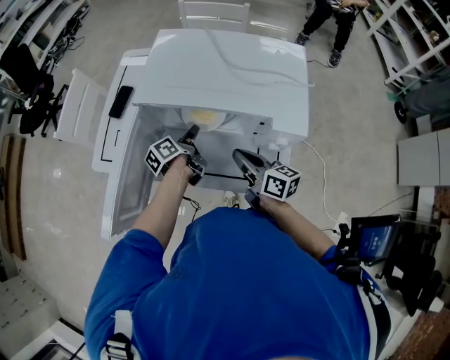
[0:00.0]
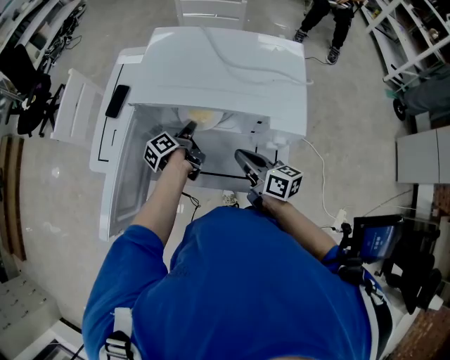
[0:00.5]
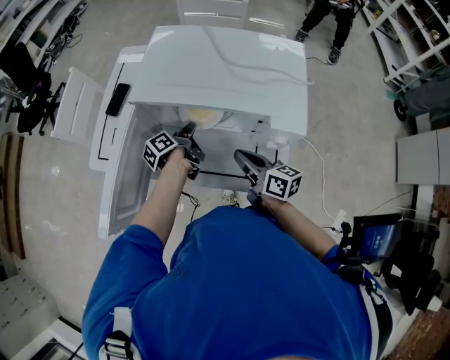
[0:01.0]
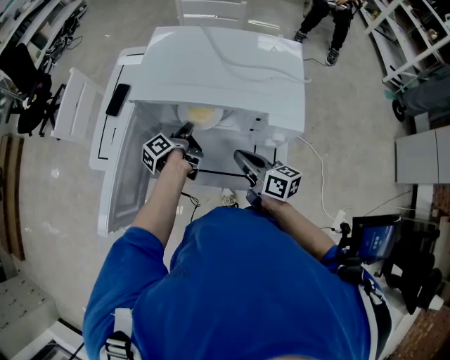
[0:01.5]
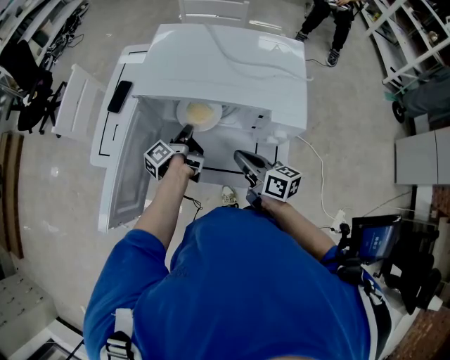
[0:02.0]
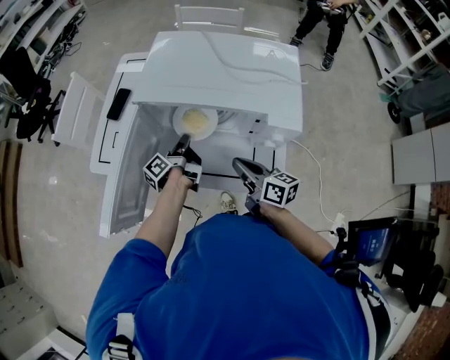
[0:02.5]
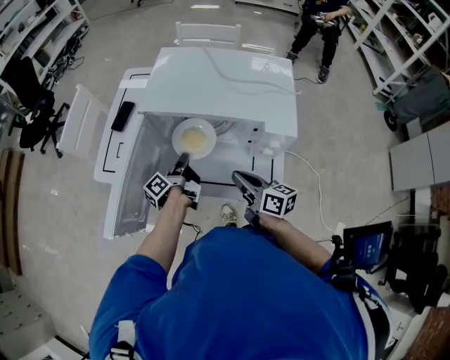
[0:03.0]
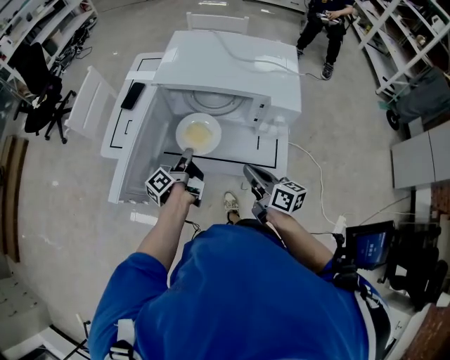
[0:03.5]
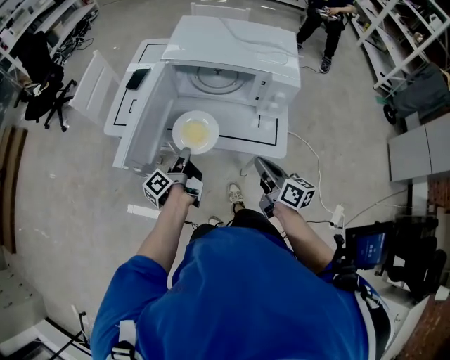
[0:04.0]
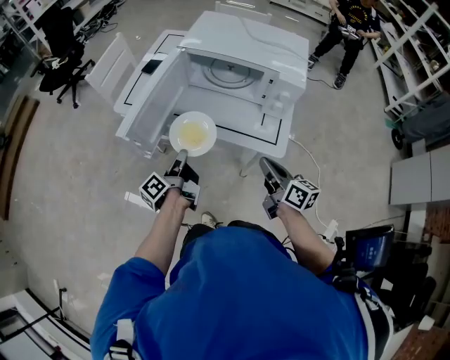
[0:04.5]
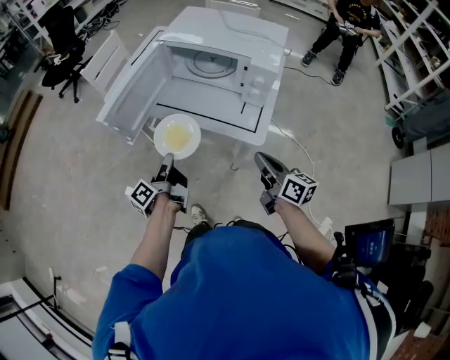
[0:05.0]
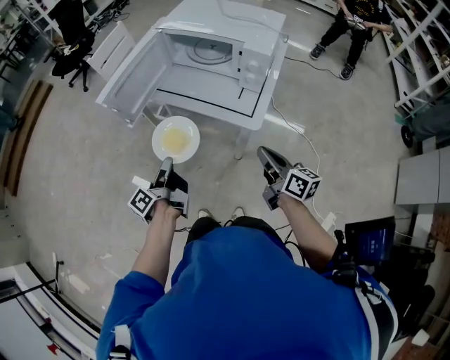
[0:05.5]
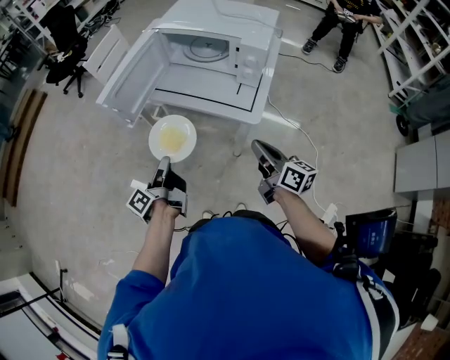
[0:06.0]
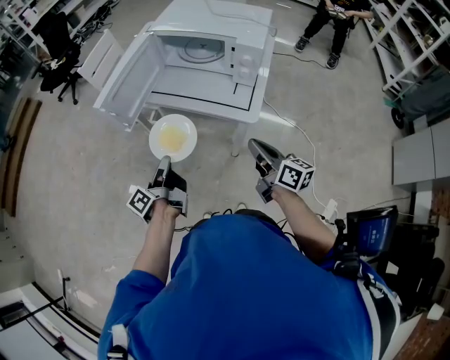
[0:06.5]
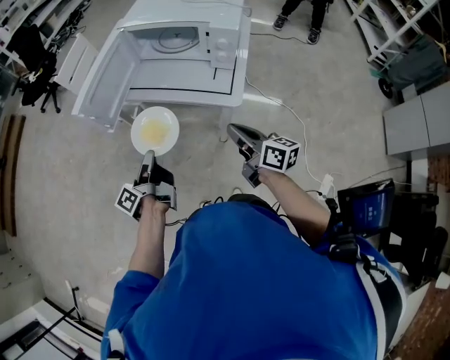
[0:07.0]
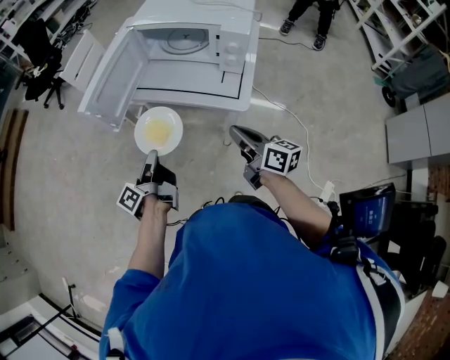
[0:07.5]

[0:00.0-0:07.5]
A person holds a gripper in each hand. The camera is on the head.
0:00.0 to 0:02.0: The left gripper closes its fingers.
0:02.0 to 0:04.0: The right gripper travels backward by approximately 15 cm, while the left gripper heads backward and to the left, covering roughly 20 cm.
0:04.0 to 0:05.5: The right gripper heads backward and to the right, covering approximately 15 cm; the left gripper travels backward by approximately 20 cm.
0:05.5 to 0:07.5: The right gripper is displaced to the left by about 5 cm.

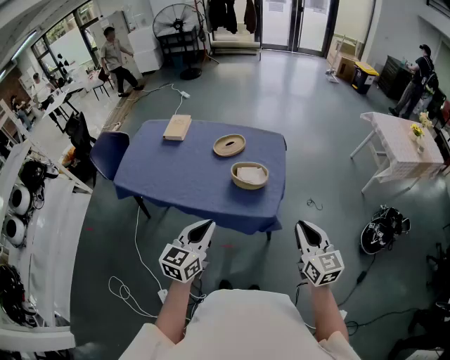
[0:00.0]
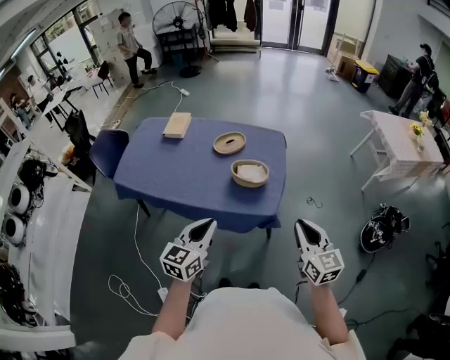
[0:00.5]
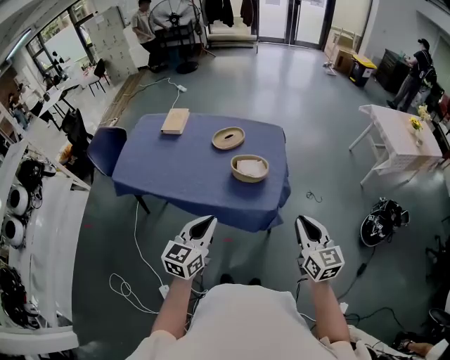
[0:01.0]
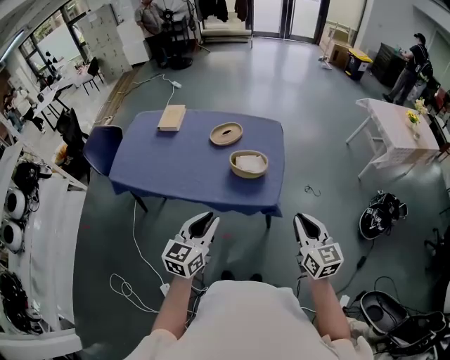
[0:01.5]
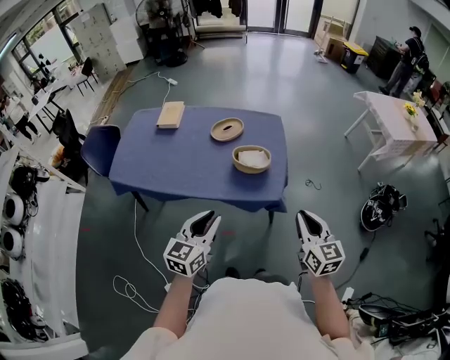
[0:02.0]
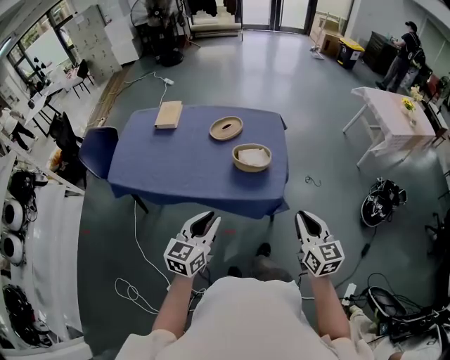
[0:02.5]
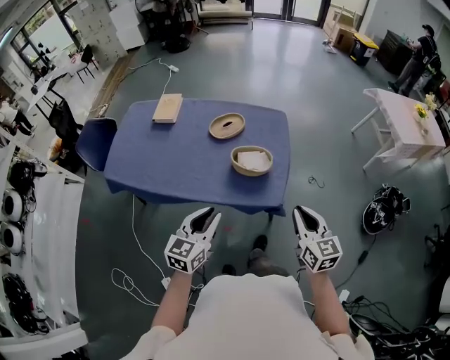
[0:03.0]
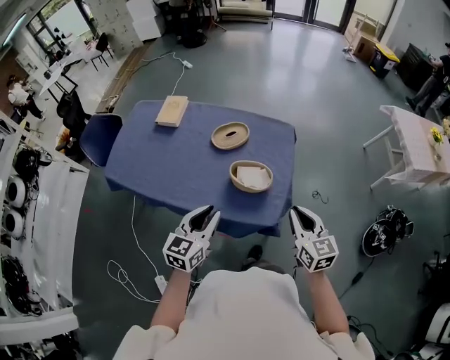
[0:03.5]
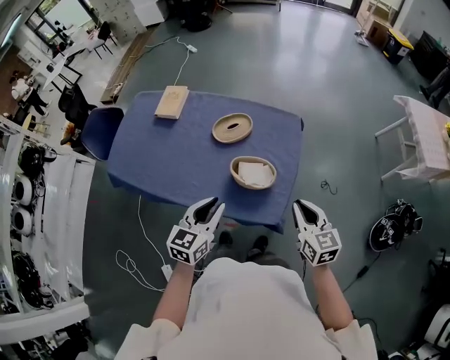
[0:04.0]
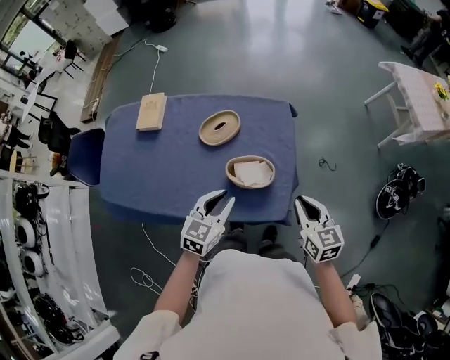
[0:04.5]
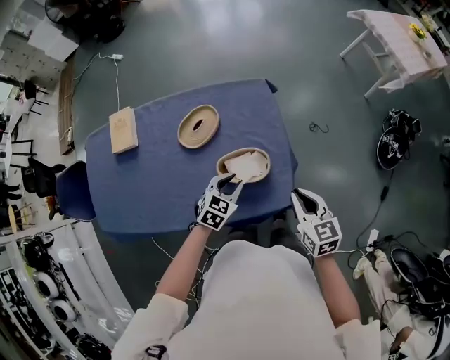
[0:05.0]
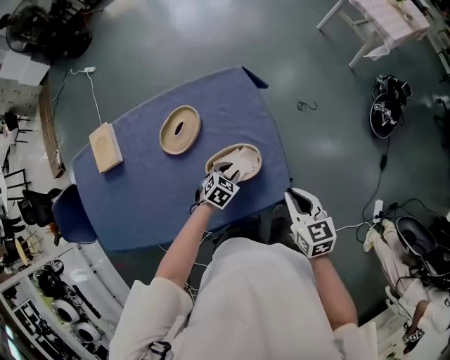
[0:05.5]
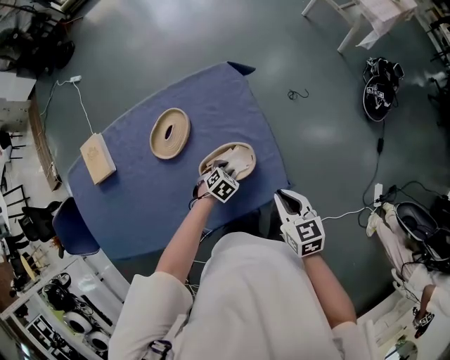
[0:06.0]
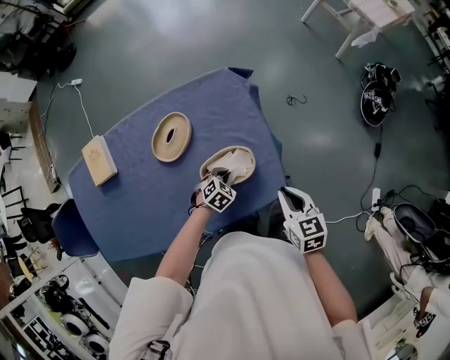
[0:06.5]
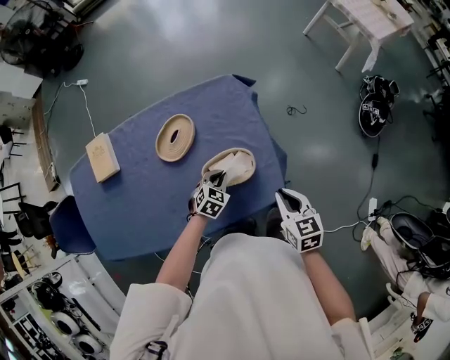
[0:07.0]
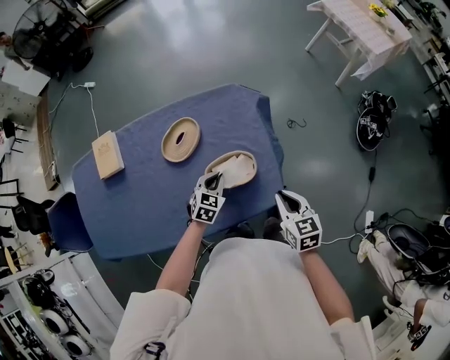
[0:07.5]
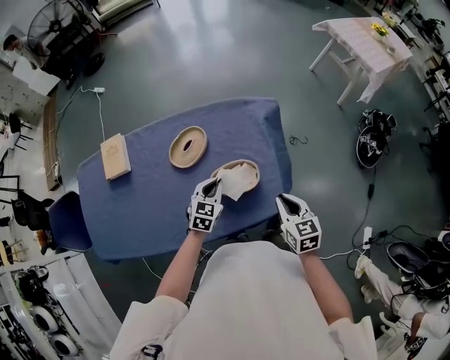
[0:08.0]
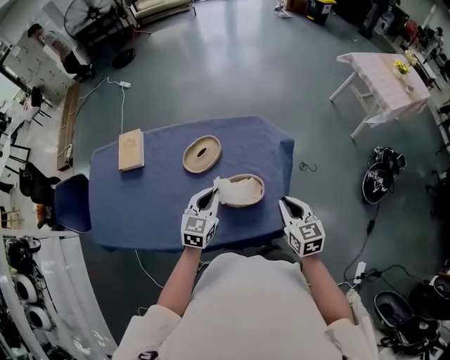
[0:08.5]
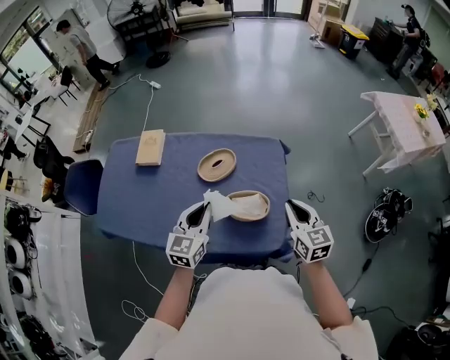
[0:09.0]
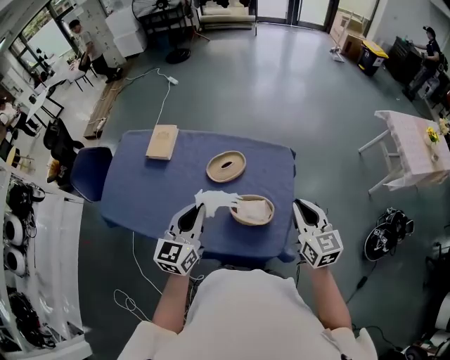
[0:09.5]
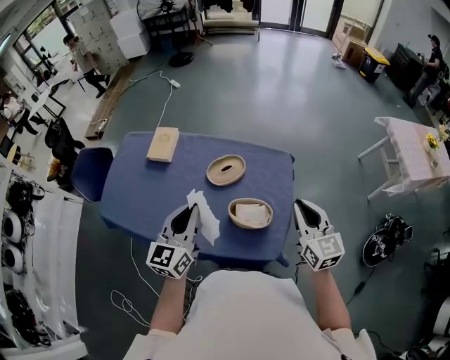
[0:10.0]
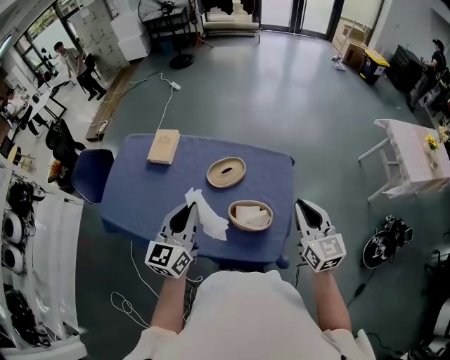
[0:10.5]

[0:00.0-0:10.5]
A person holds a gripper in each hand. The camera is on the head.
0:00.0 to 0:02.0: The grippers both shift to the left by some 5 cm.
0:02.0 to 0:04.0: The two grippers go approximately 25 cm forward.
0:04.0 to 0:06.5: The right gripper shifts about 15 cm downward, and changes its angle by roughly 40 degrees. Meanwhile the left gripper shifts some 35 cm downward, and points its fingers some 40 degrees further downward.
0:06.5 to 0:08.5: The right gripper goes approximately 10 cm upward, while the left gripper travels upward by about 25 cm, and points its fingers about 40 degrees further upward.
0:08.5 to 0:10.5: The left gripper shifts roughly 20 cm upward and to the left, and rotates approximately 30 degrees. The right gripper moves upward, approximately 15 cm, and turns by about 30 degrees.

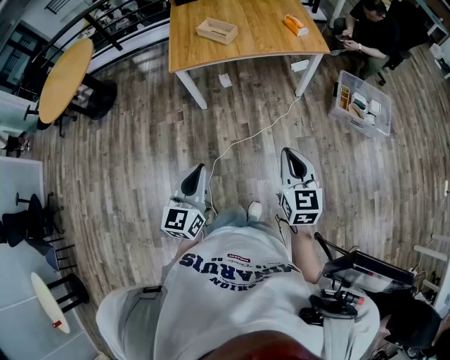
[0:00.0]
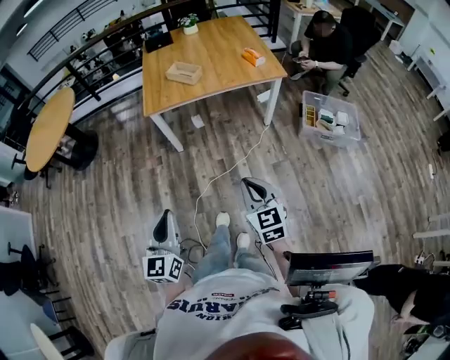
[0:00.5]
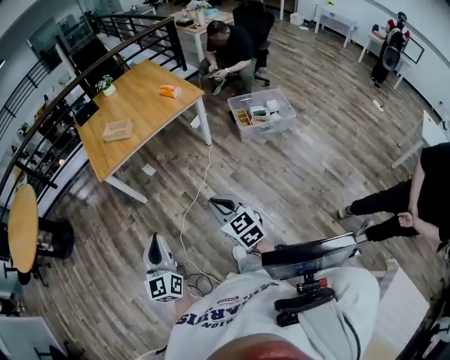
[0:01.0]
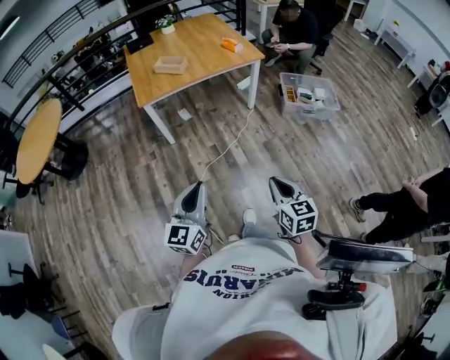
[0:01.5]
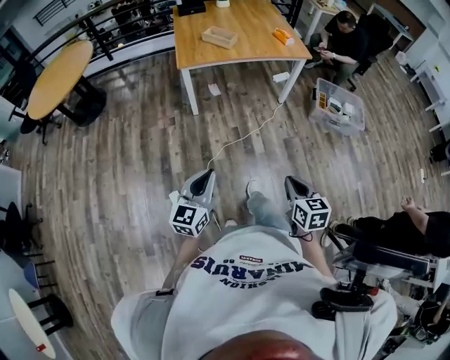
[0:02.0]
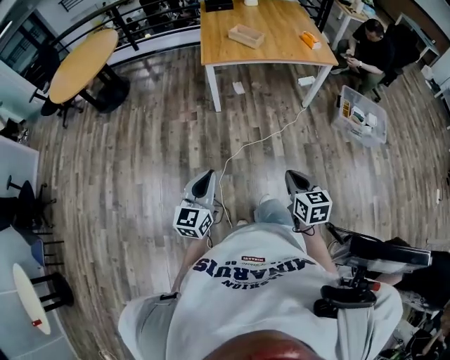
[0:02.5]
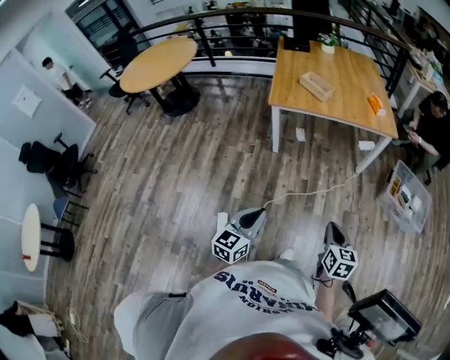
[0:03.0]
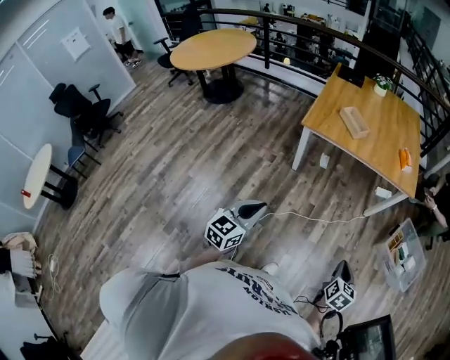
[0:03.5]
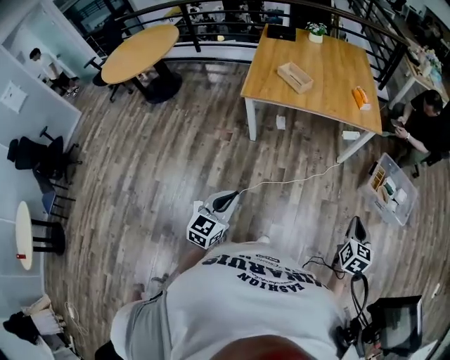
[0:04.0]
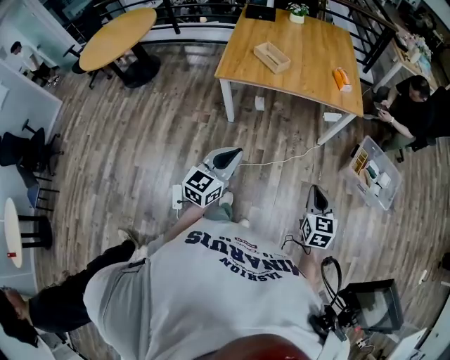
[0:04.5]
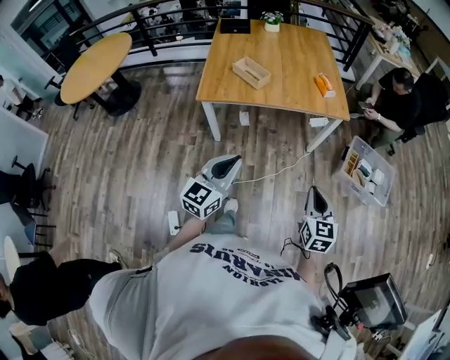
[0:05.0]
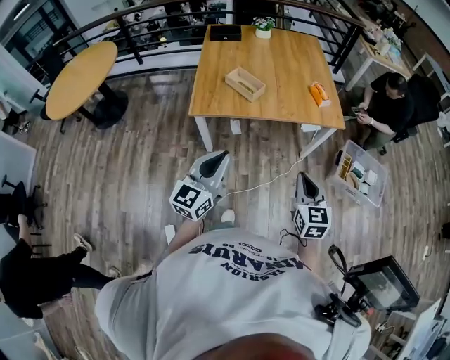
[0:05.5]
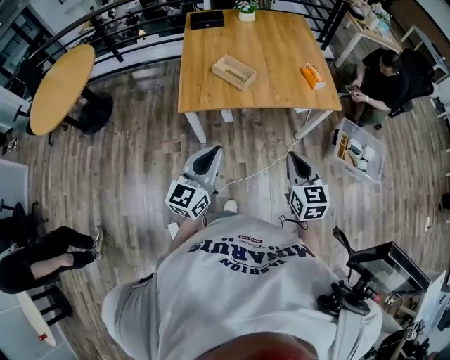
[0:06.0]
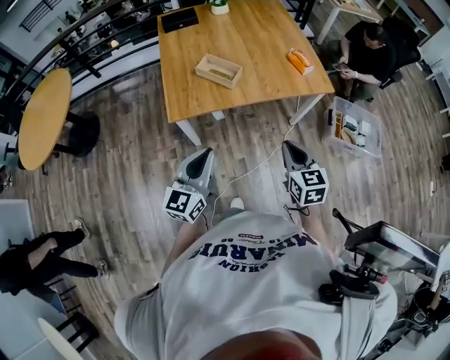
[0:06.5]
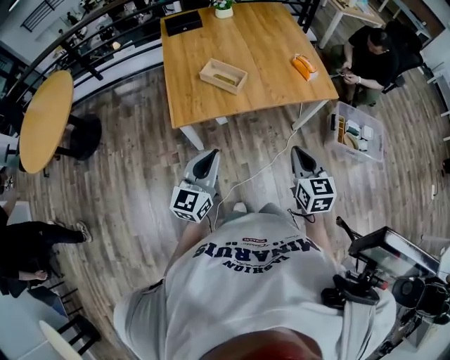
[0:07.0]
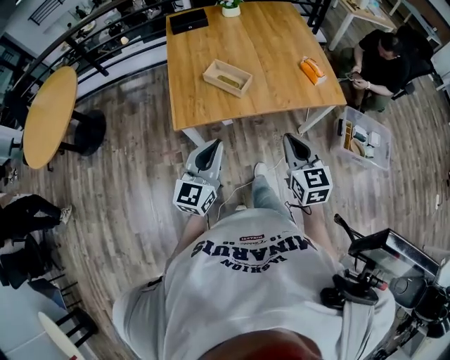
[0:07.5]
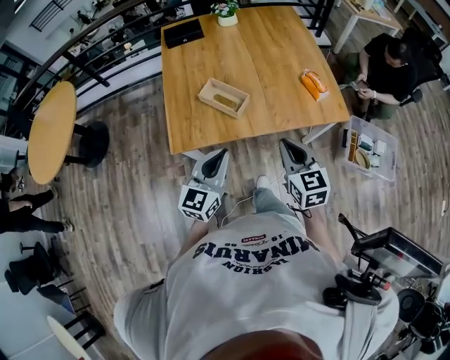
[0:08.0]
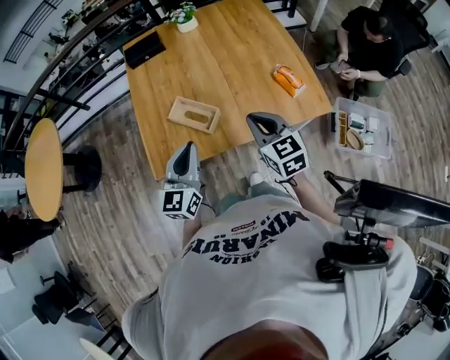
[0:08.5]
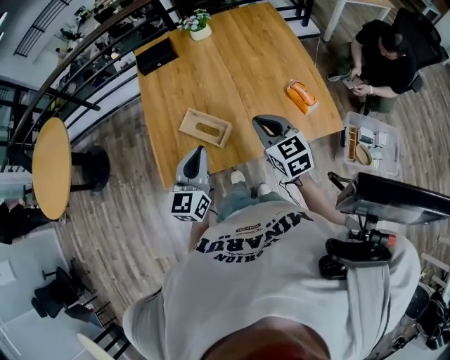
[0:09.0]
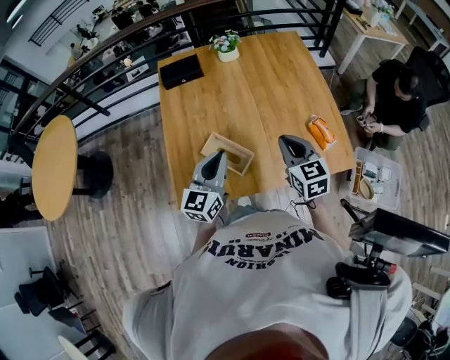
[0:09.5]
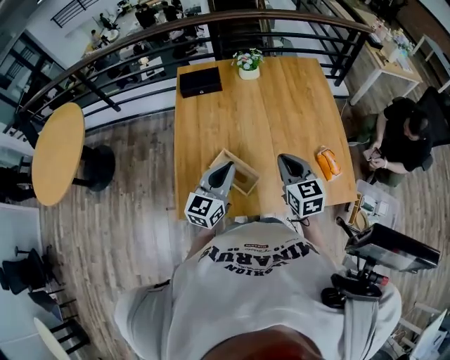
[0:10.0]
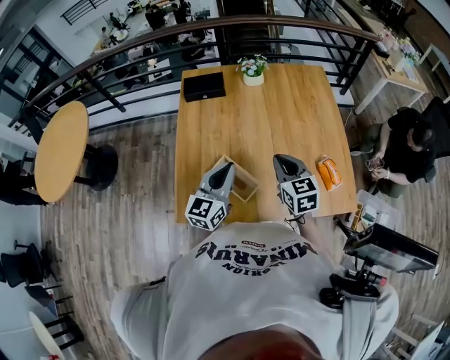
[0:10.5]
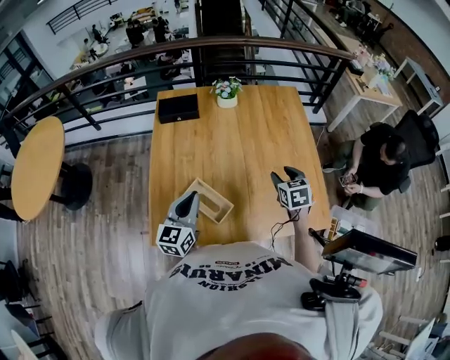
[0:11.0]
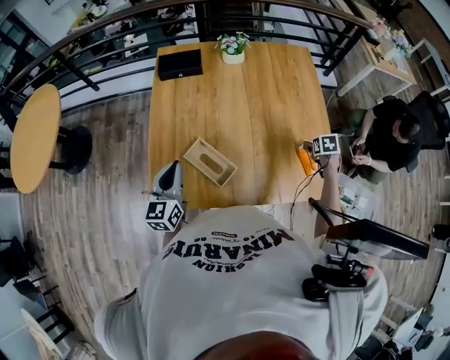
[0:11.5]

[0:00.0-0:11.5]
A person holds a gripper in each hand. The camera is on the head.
0:00.0 to 0:02.0: The right gripper travels backward by some 30 cm. Meanwhile the left gripper travels backward and to the left by roughly 25 cm.
0:02.0 to 0:04.0: The left gripper goes approximately 20 cm forward and to the right. Meanwhile the right gripper goes roughly 40 cm forward and to the right.
0:04.0 to 0:06.0: The left gripper shifts roughly 30 cm forward, and rotates roughly 20 degrees. The right gripper is displaced to the left and forward by roughly 35 cm.
0:06.0 to 0:07.5: Both grippers travel together forward, approximately 15 cm.
0:07.5 to 0:09.5: Both grippers move forward, roughly 40 cm.
0:09.5 to 0:11.5: The right gripper is displaced to the right, downward and forward by approximately 35 cm, tilts its fingers roughly 40 degrees downward, and opens up; the left gripper heads to the left, covering about 10 cm, and changes its angle by approximately 20 degrees.
